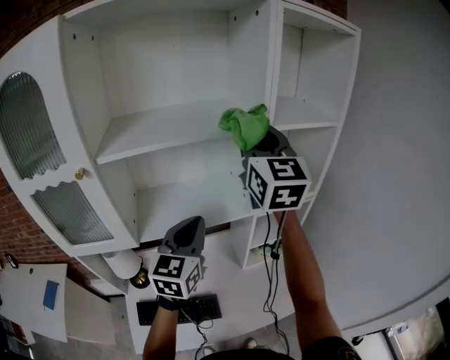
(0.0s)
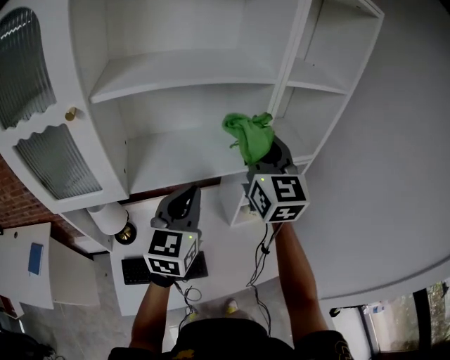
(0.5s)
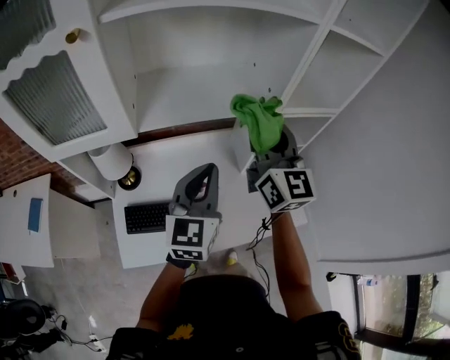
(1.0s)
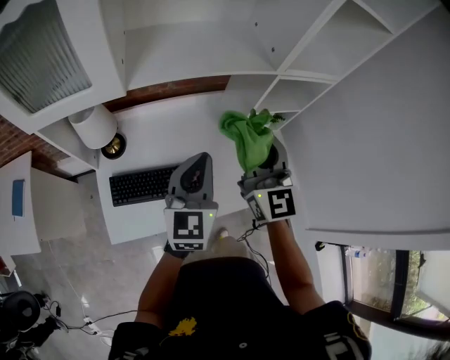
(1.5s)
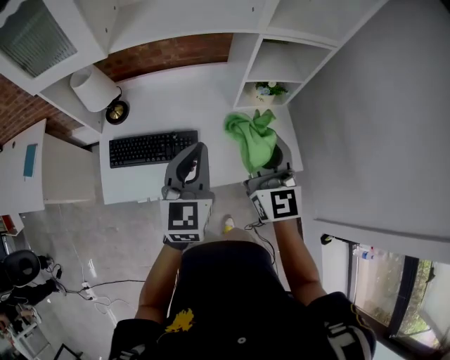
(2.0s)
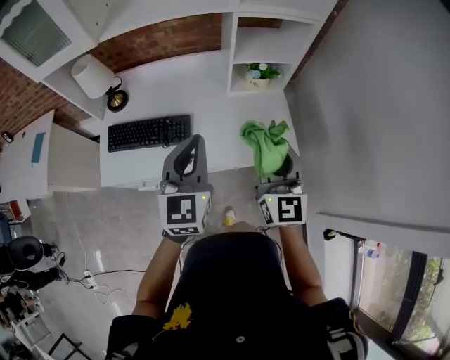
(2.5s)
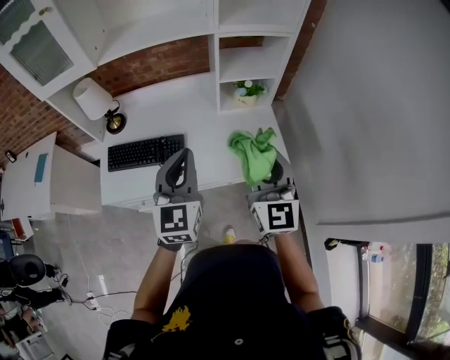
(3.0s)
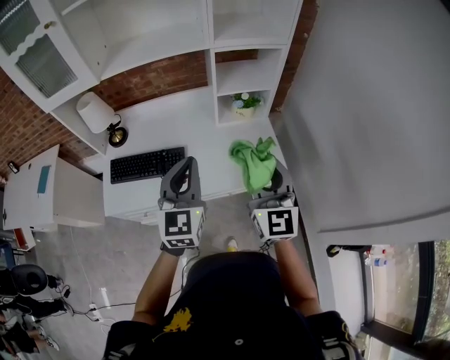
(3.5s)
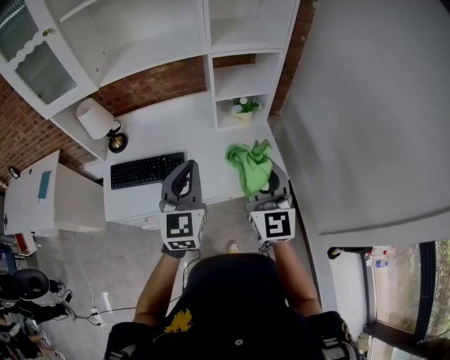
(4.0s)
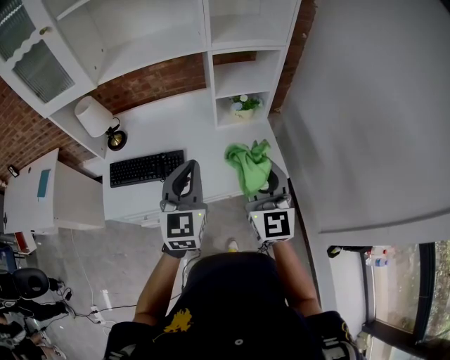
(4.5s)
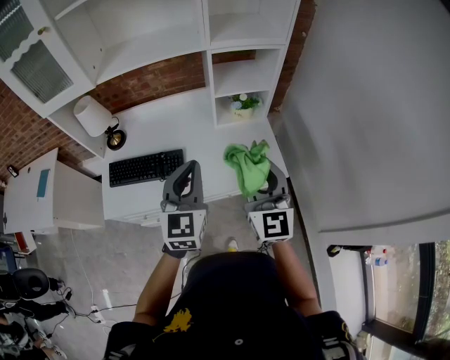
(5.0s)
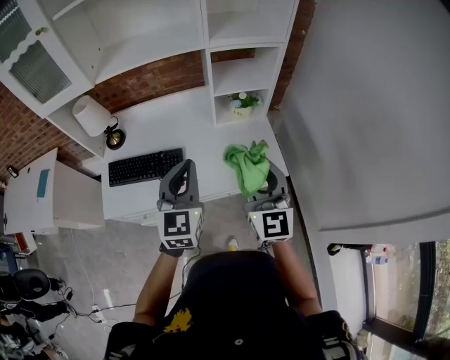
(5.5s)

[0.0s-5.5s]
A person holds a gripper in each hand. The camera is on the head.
0.0s to 2.0s: The left gripper is displaced downward and backward by about 30 cm, while the right gripper goes approximately 50 cm downward and backward.
2.0s to 3.5s: The right gripper heads to the right and backward, covering roughly 20 cm, while the left gripper travels backward and to the right by approximately 10 cm.
3.5s to 5.5s: The grippers make only small movements.

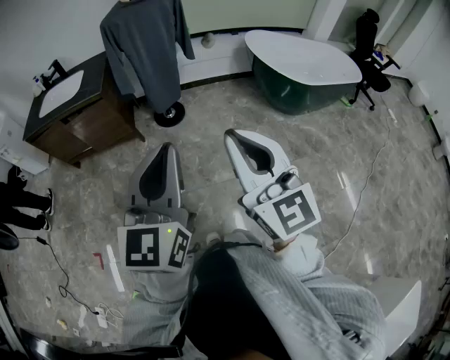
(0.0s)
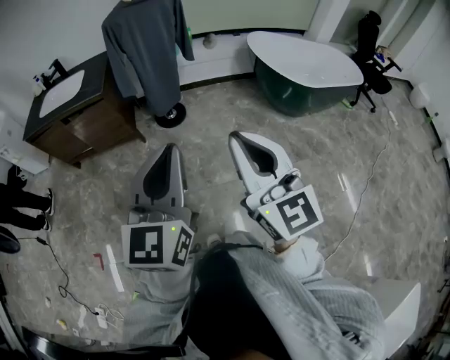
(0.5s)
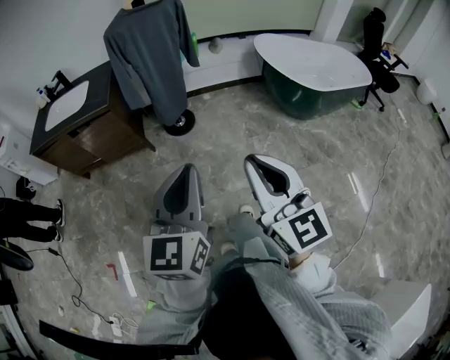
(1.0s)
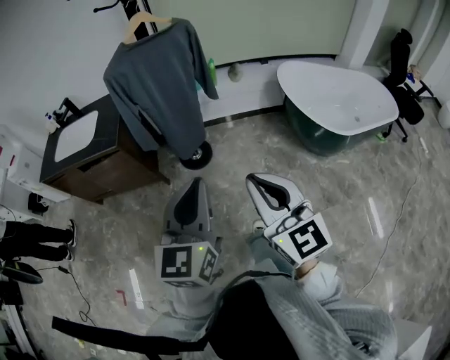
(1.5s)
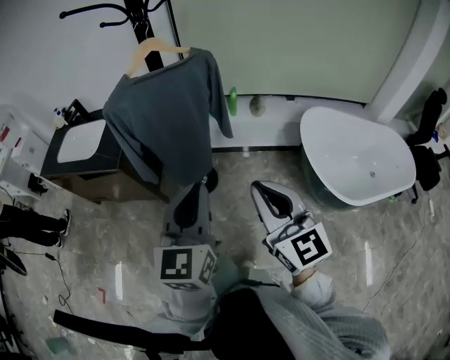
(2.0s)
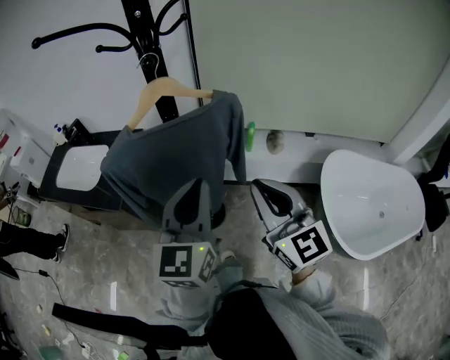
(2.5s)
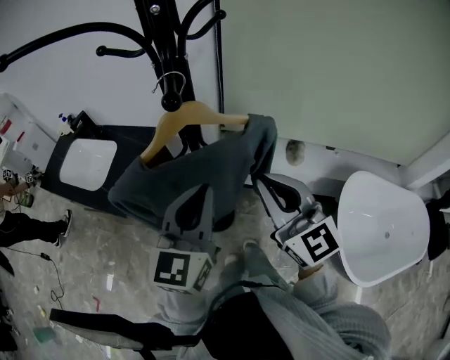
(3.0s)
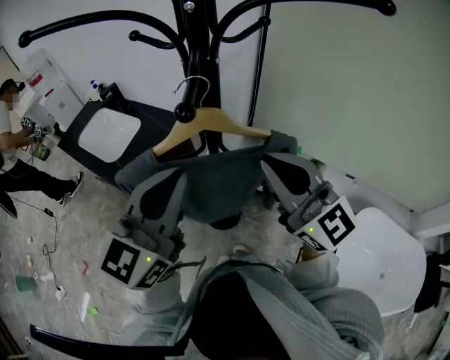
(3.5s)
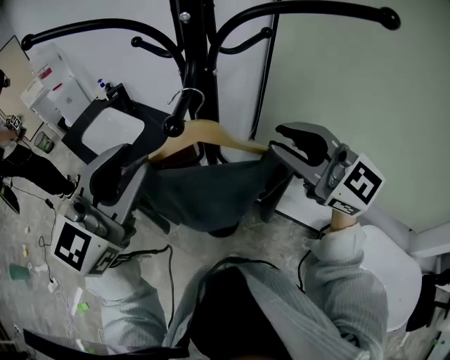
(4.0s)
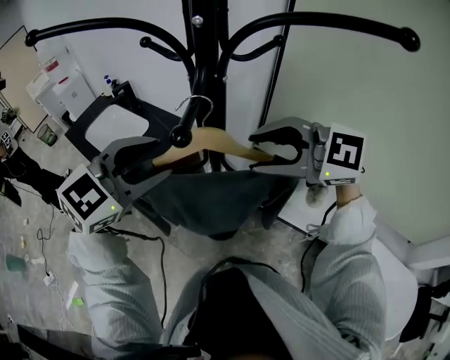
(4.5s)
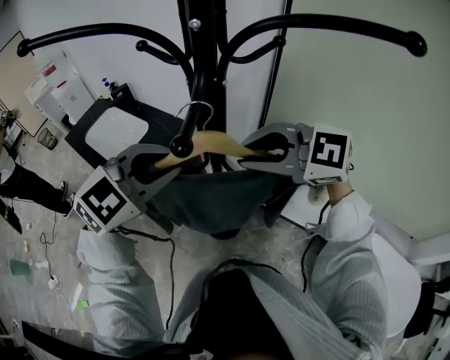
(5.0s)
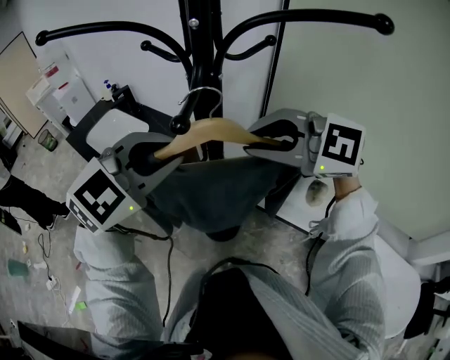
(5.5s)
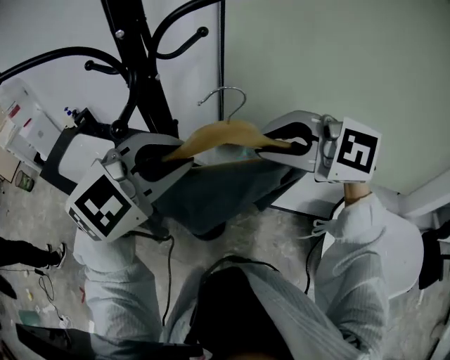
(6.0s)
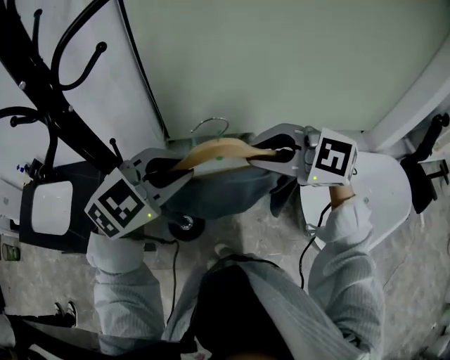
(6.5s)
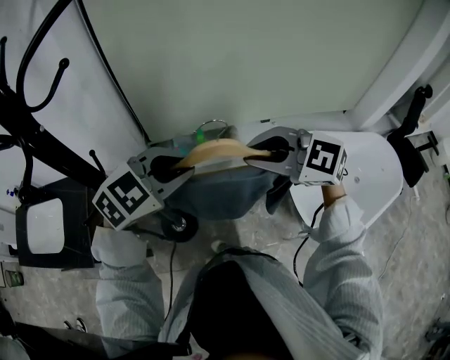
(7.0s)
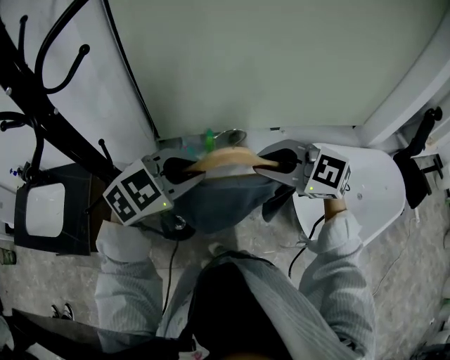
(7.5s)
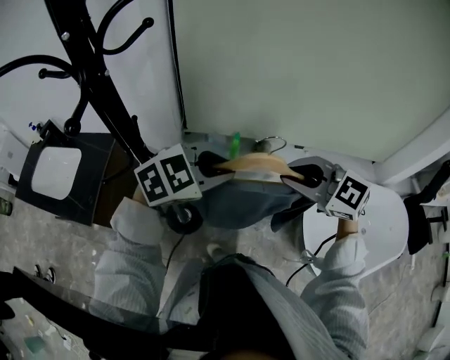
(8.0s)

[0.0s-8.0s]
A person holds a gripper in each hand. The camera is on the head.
0.0s to 2.0s: Both grippers are carried forward, approximately 50 cm.
2.0s to 4.0s: The two grippers travel together, some 50 cm. The right gripper turns by approximately 50 degrees; the left gripper turns by roughly 20 degrees, and opens its fingers.
4.0s to 6.0s: The left gripper ends up approximately 15 cm from where it was, and swivels approximately 50 degrees. Meanwhile the right gripper ends up roughly 5 cm from where it was, turns by some 20 degrees, and opens, then closes once more.
6.0s to 8.0s: The right gripper shifts by roughly 20 cm, and turns by about 30 degrees. Meanwhile the left gripper shifts by approximately 20 cm, and rotates about 30 degrees.

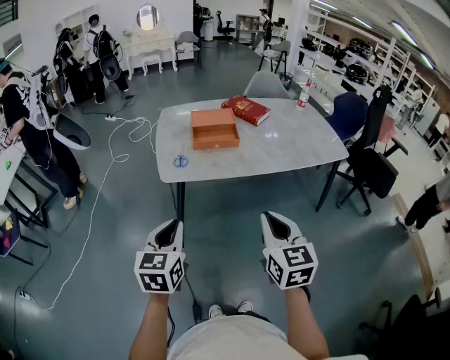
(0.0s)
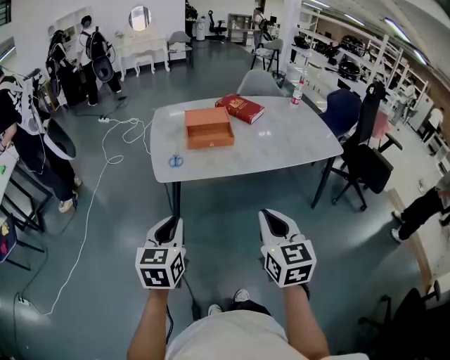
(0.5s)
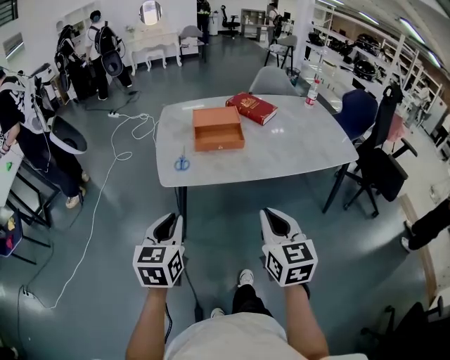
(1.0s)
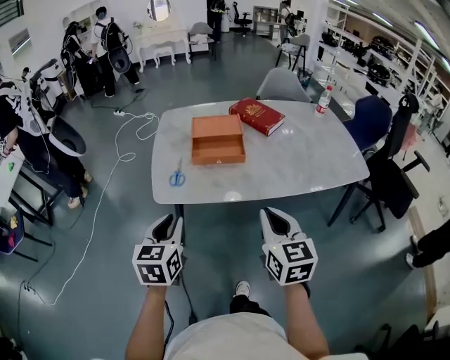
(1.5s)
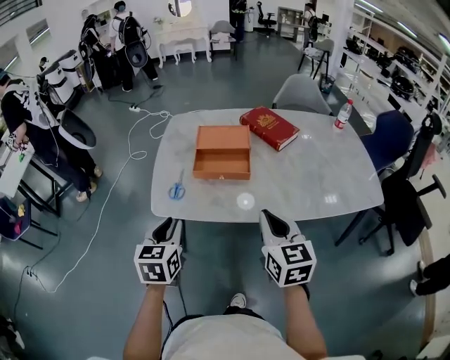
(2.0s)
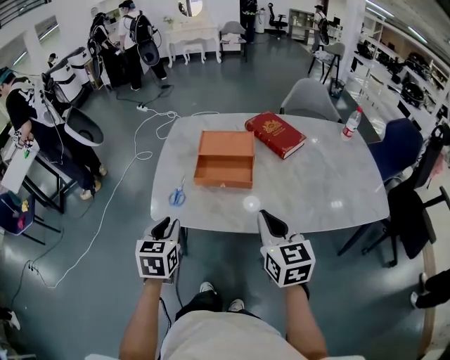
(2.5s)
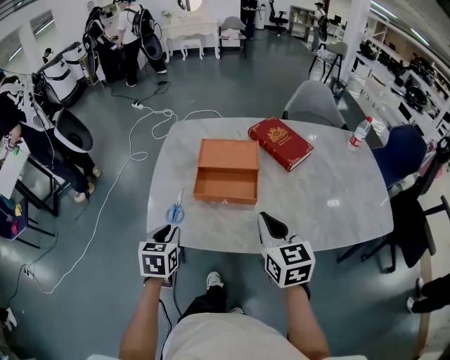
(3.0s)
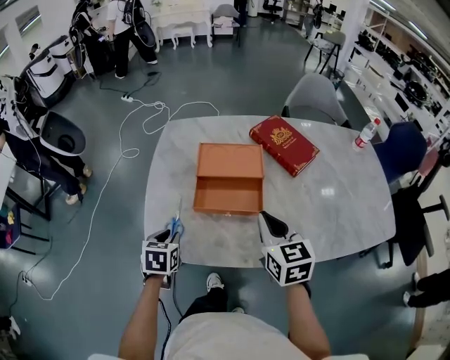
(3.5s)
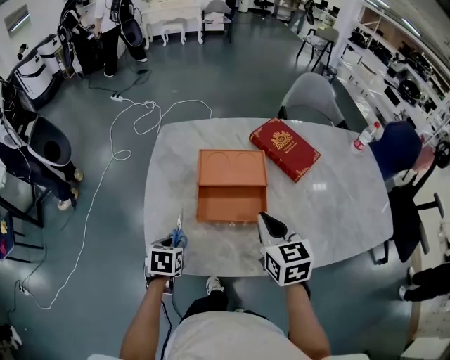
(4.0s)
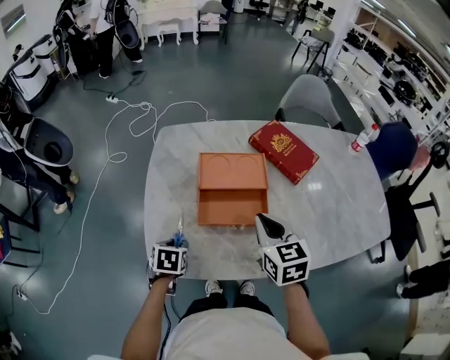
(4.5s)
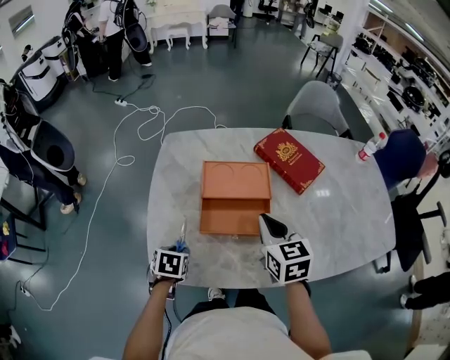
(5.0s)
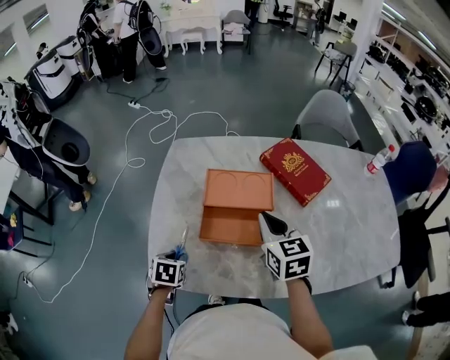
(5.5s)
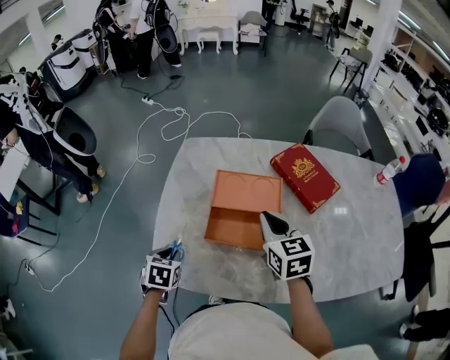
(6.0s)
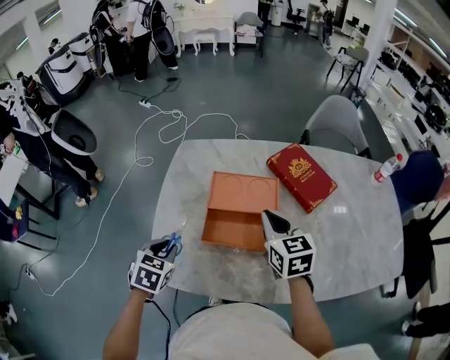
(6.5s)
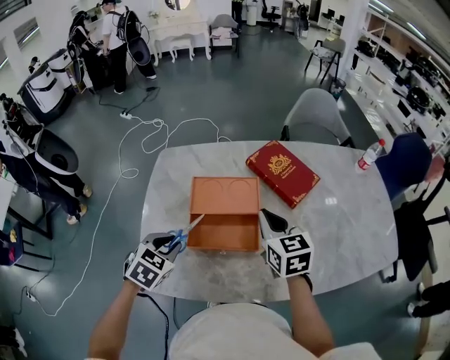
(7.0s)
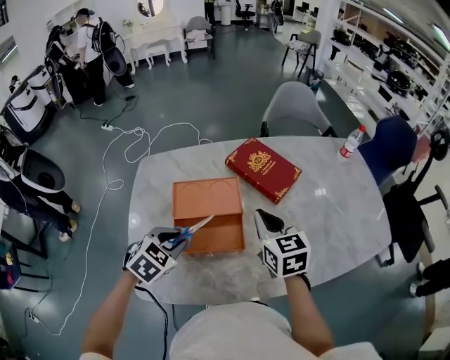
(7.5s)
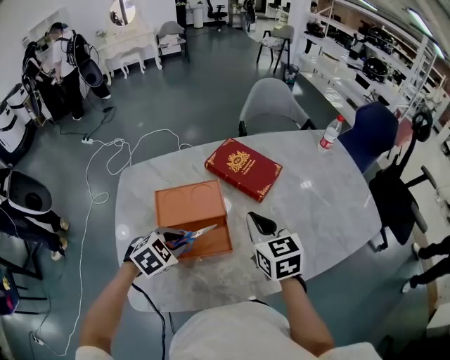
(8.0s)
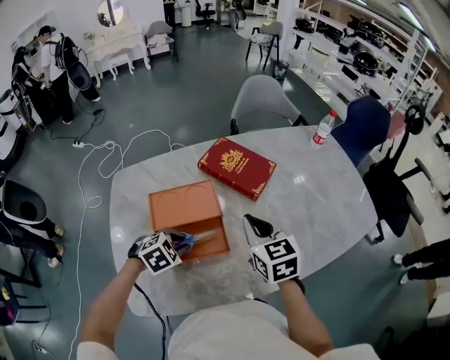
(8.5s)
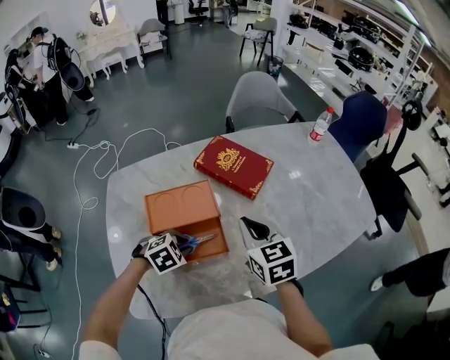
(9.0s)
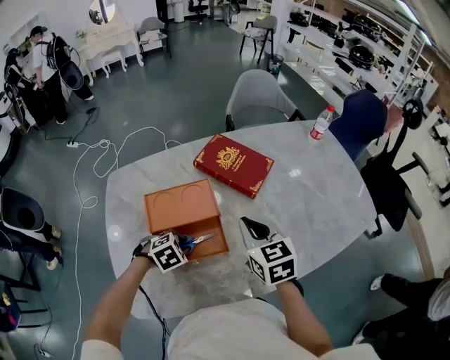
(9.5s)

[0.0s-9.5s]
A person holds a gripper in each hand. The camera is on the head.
0.0s to 2.0s: The grippers both shift forward by approximately 25 cm.
2.0s to 4.0s: The right gripper goes about 25 cm forward; the left gripper is displaced forward and downward by roughly 25 cm, and tips its fingers downward by some 30 degrees.
4.0s to 5.5s: The right gripper shifts some 10 cm forward.
5.5s to 7.5s: The right gripper heads to the right, covering about 10 cm; the left gripper goes about 20 cm upward, to the right and forward, and twists approximately 50 degrees clockwise, seen from behind.
7.5s to 9.5s: The left gripper shifts some 10 cm downward, and rotates some 30 degrees.

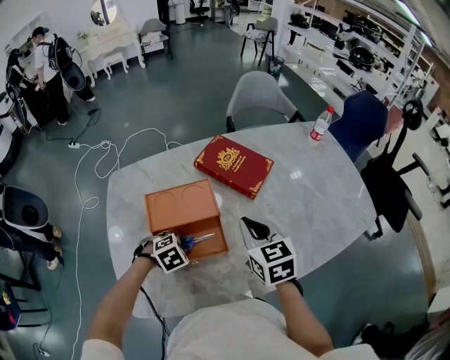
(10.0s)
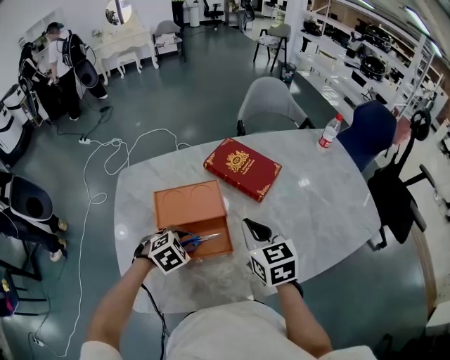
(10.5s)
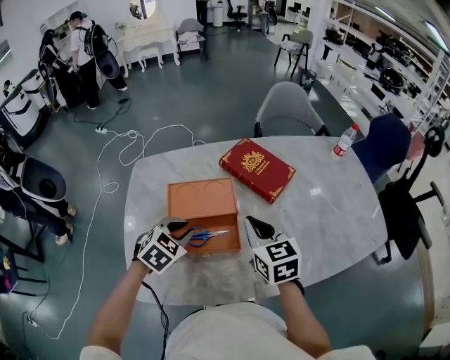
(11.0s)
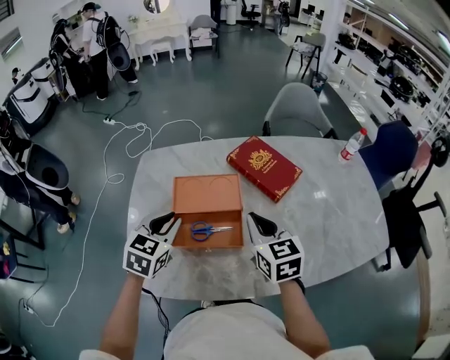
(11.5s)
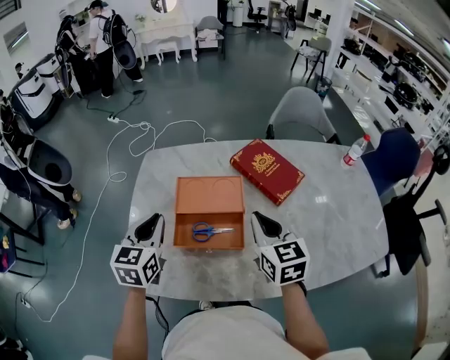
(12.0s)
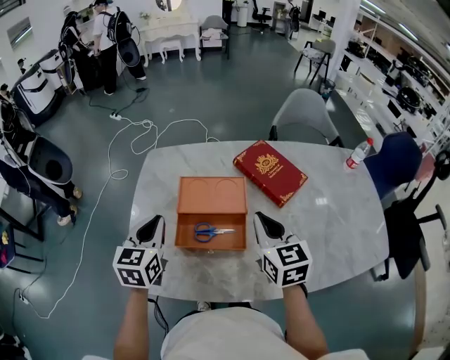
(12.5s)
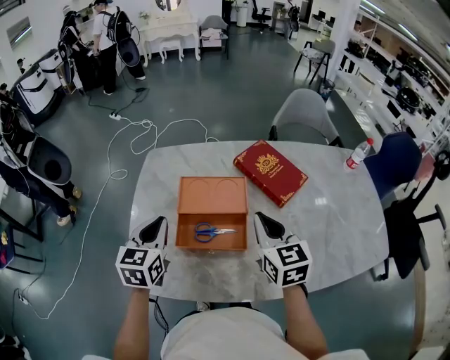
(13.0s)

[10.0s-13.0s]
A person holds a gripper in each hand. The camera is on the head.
10.0s to 11.5s: The left gripper is displaced upward and to the left by roughly 20 cm, and angles its fingers upward, by roughly 40 degrees.
11.5s to 13.0s: The left gripper is displaced to the left by about 5 cm, and turns by some 20 degrees.
